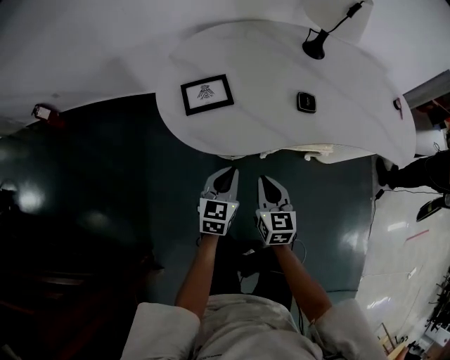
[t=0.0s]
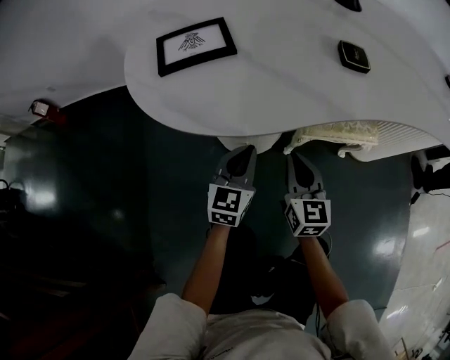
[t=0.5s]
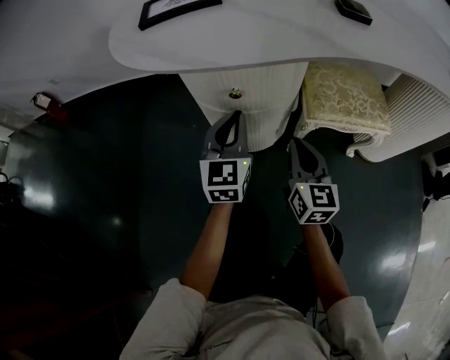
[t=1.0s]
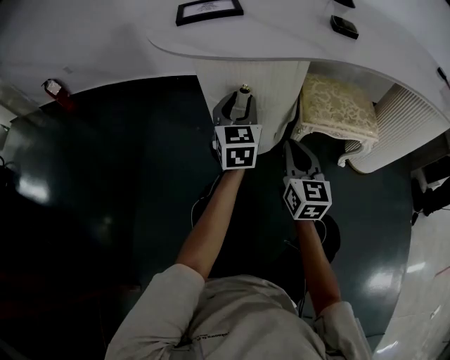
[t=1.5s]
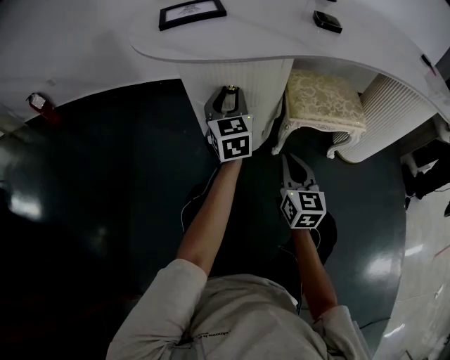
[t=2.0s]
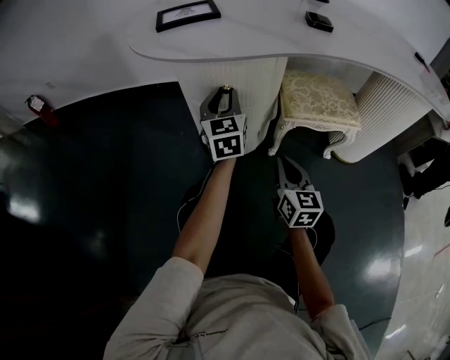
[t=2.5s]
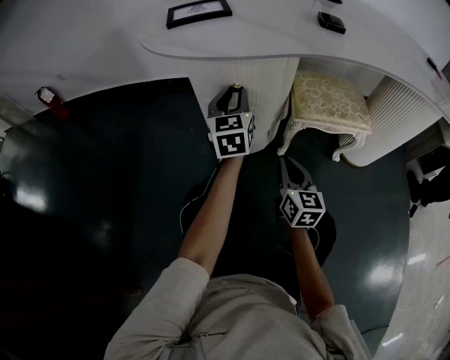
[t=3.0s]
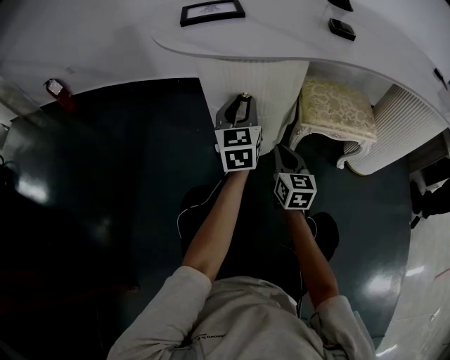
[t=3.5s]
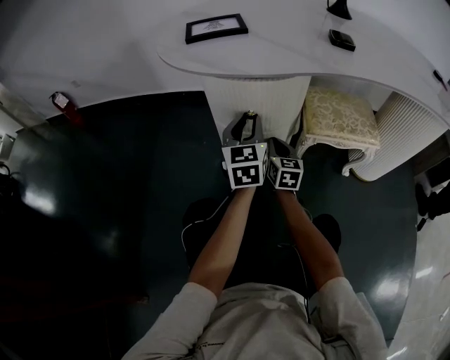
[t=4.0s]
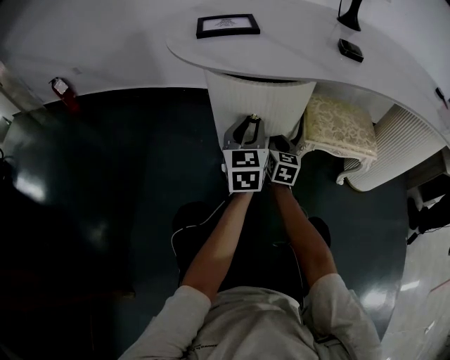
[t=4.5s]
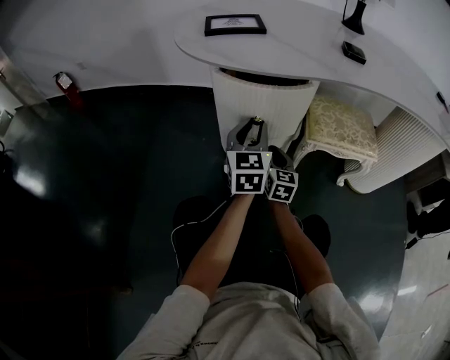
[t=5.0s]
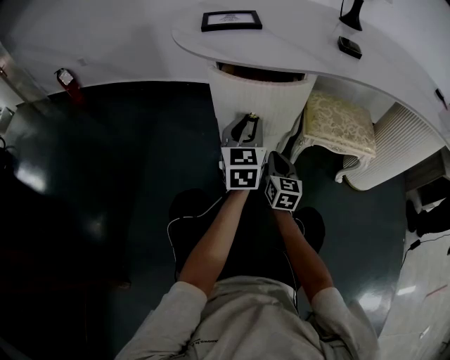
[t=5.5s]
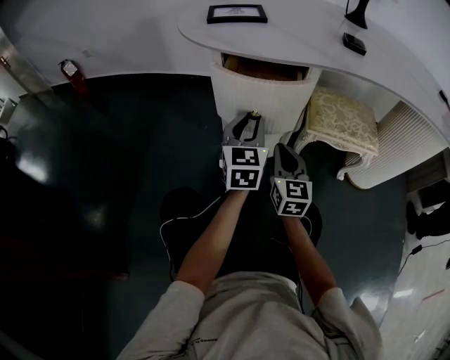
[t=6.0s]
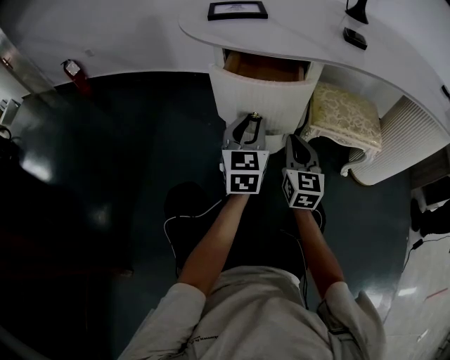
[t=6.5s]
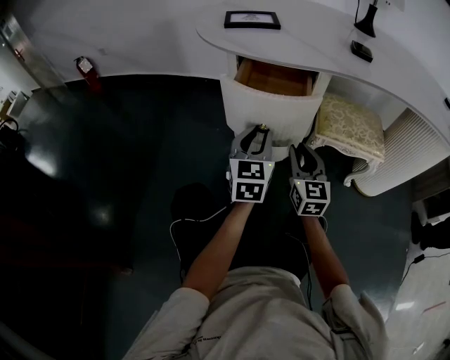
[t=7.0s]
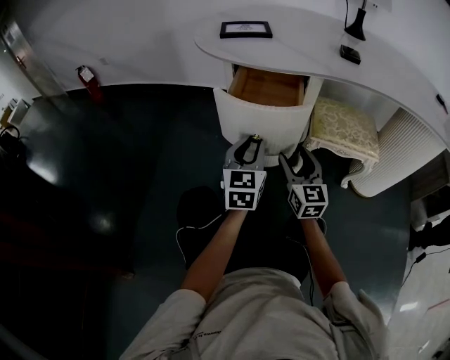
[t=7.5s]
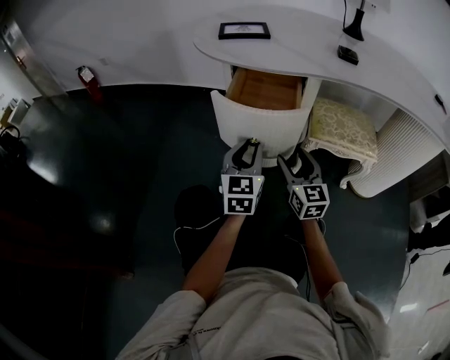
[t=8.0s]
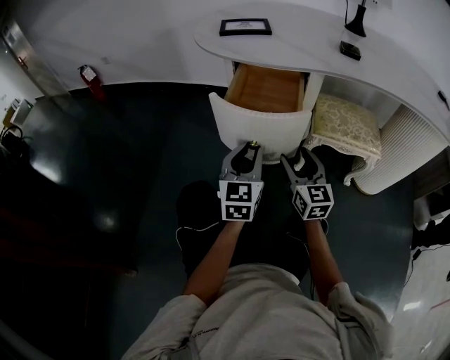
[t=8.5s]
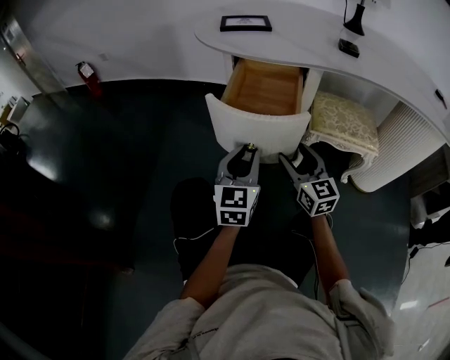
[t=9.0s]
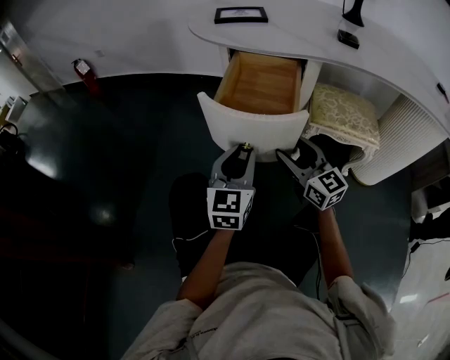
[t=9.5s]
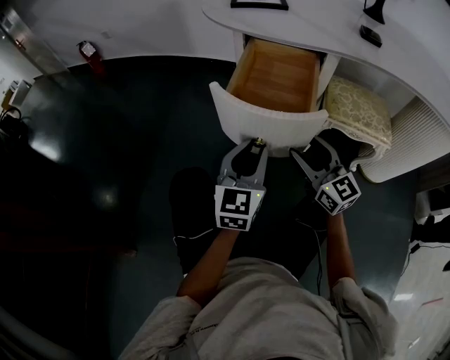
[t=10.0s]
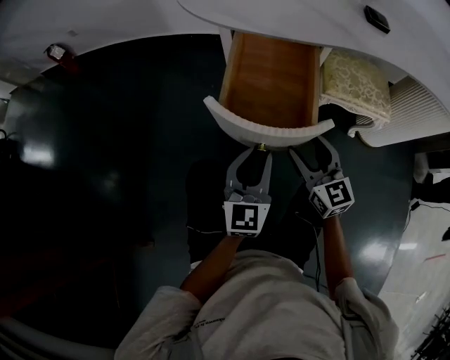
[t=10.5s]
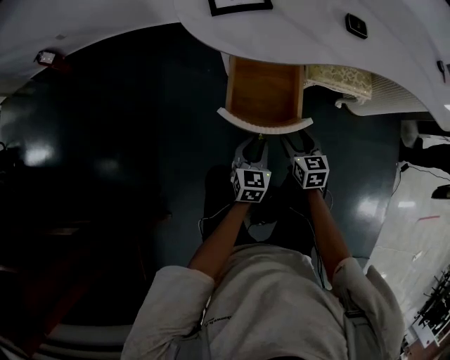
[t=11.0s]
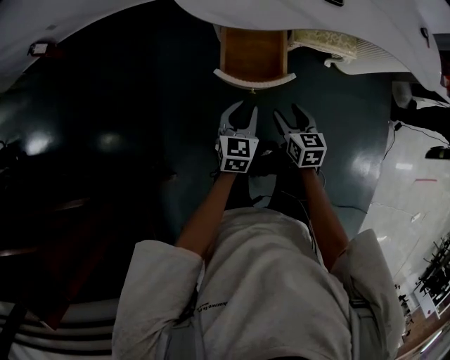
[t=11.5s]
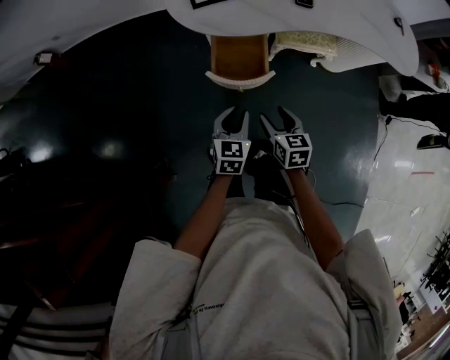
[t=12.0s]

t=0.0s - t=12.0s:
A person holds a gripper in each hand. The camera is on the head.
t=0.0s - t=2.0s: The left gripper moves downward and forward, some 20 cm, turns by roughly 30 degrees, and opens. Meanwhile the right gripper heads downward, covering about 25 cm.
t=2.0s - t=4.0s: The right gripper is displaced forward, downward and to the left by about 15 cm.
t=4.0s - t=6.0s: The right gripper heads backward and upward, covering some 15 cm, while the left gripper is displaced backward by some 5 cm.
t=6.0s - t=8.0s: The right gripper opens its fingers. Meanwhile the left gripper goes roughly 10 cm backward.
t=8.0s - t=10.0s: The right gripper moves about 5 cm, and turns by roughly 20 degrees. Meanwhile the left gripper is displaced backward by some 5 cm.
t=10.0s - t=12.0s: The left gripper goes approximately 20 cm upward, and points its fingers approximately 30 degrees further downward. The right gripper goes approximately 25 cm upward and backward, and points its fingers approximately 40 degrees further downward.

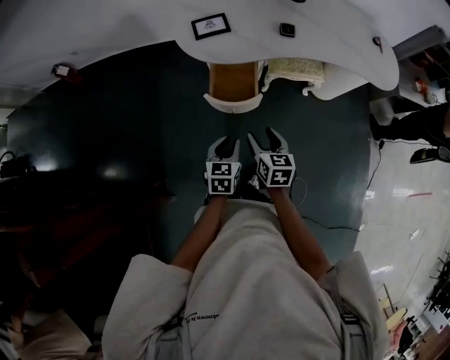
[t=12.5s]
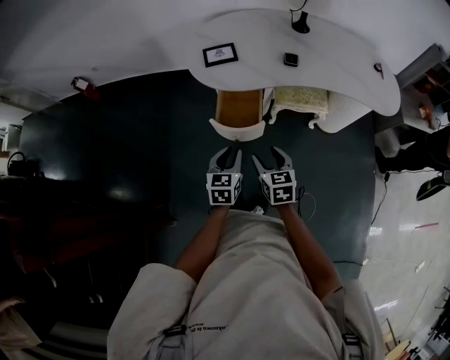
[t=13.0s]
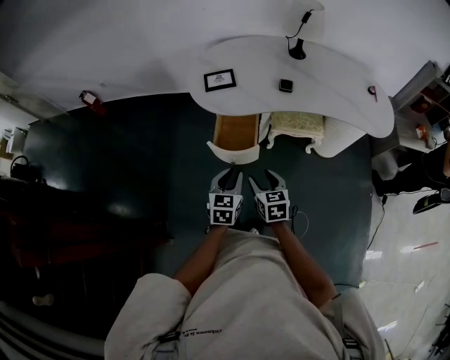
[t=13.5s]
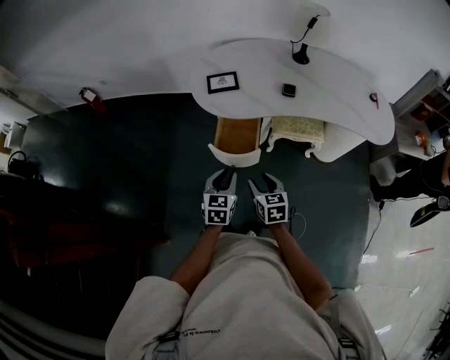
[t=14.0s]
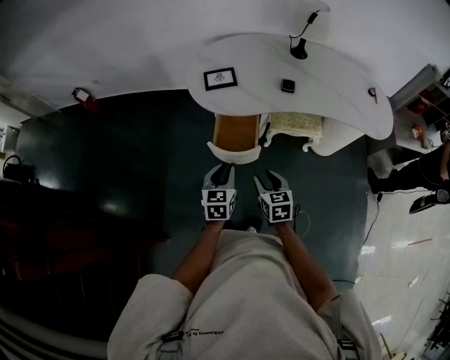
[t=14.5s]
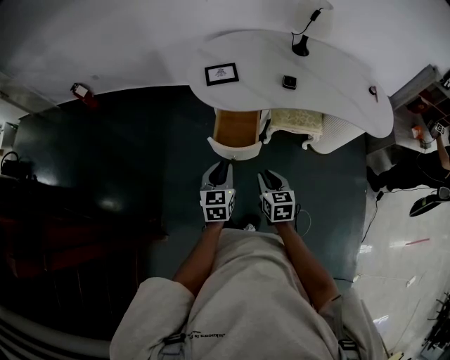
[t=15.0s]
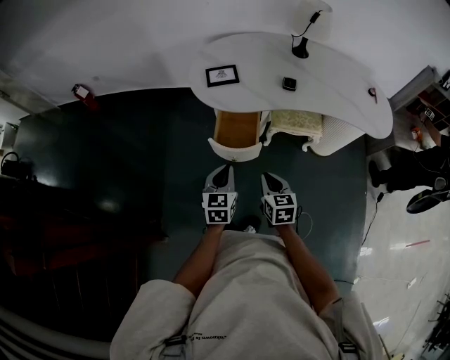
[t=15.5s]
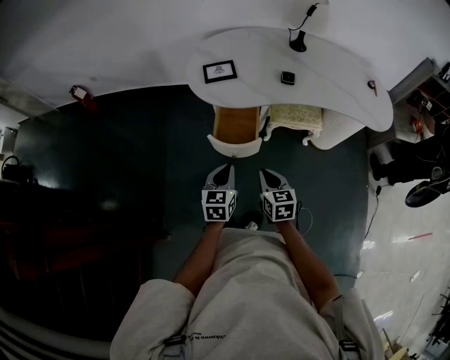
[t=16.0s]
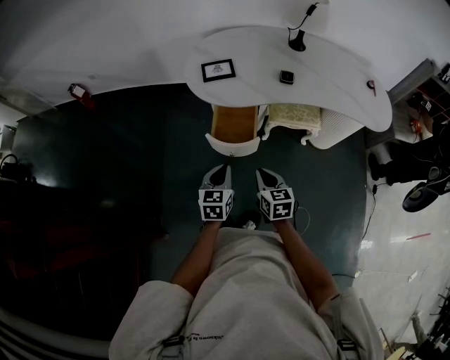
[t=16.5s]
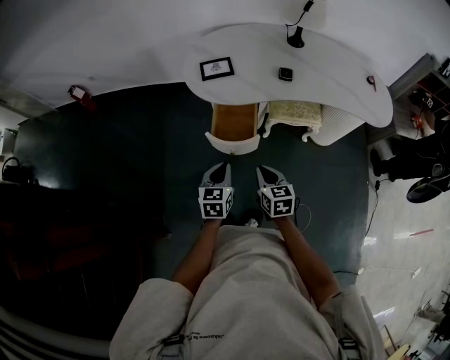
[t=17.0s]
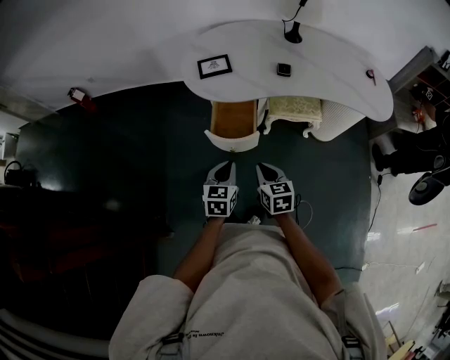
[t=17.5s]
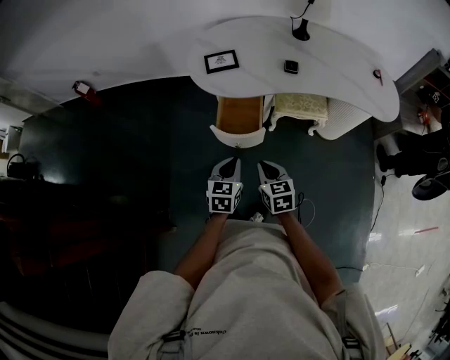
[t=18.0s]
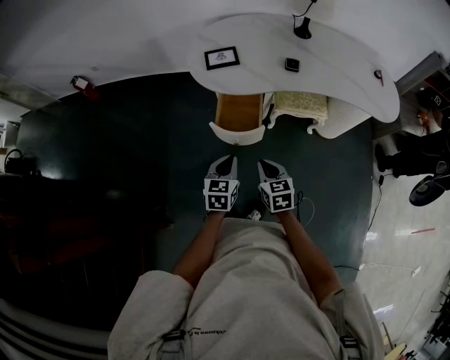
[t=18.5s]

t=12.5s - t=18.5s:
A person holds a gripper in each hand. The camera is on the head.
t=12.5s - t=14.5s: The left gripper changes place by roughly 5 cm.
t=14.5s - t=16.5s: The right gripper closes up, while the left gripper closes.
t=16.5s - t=18.5s: The grippers stay close to where they were, moving slightly.

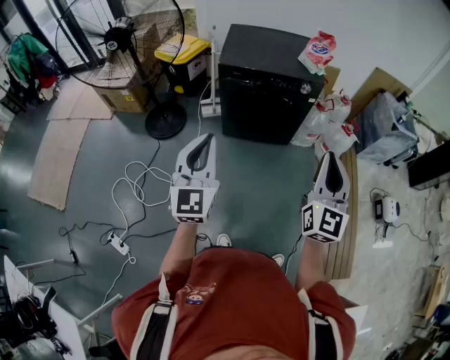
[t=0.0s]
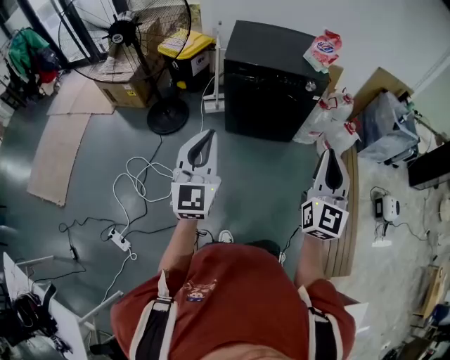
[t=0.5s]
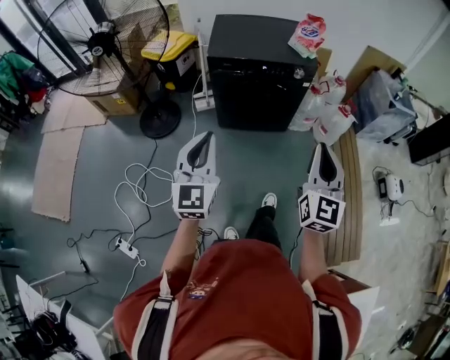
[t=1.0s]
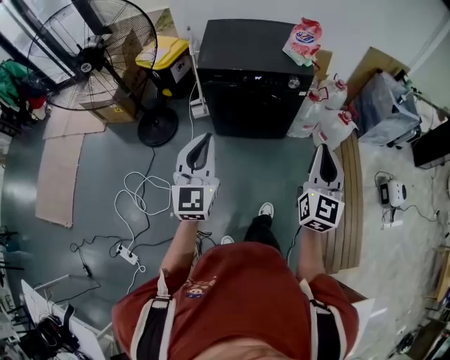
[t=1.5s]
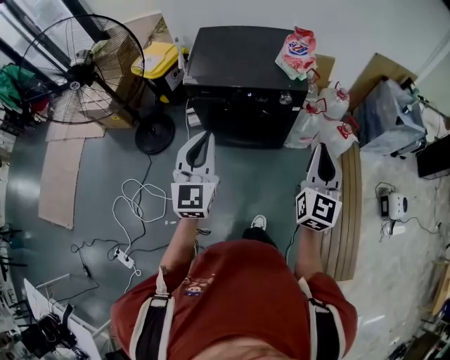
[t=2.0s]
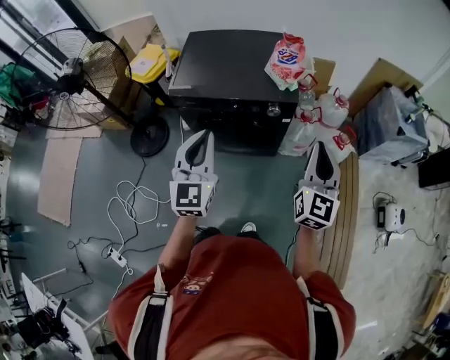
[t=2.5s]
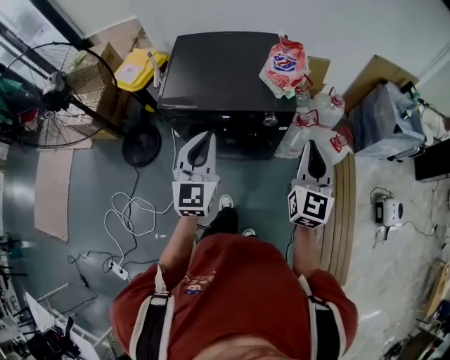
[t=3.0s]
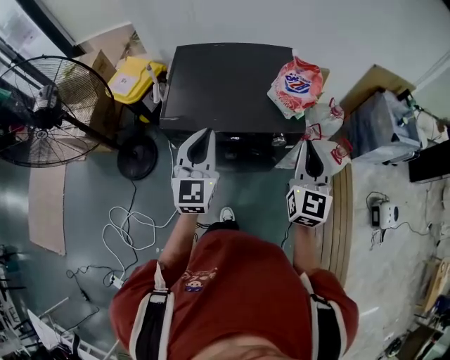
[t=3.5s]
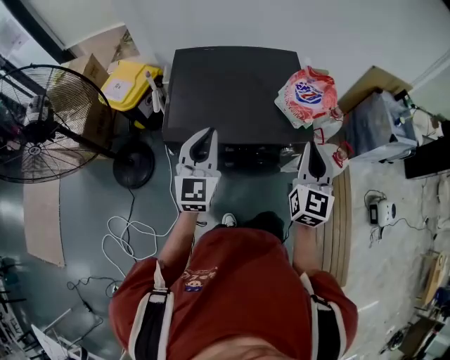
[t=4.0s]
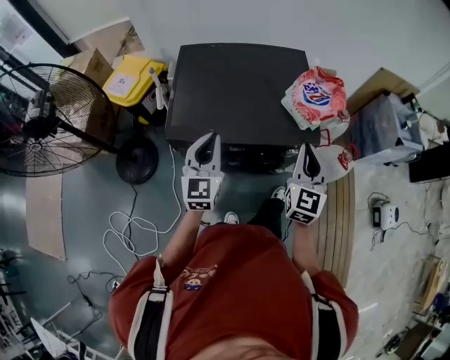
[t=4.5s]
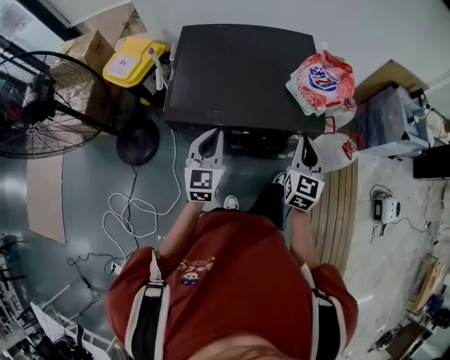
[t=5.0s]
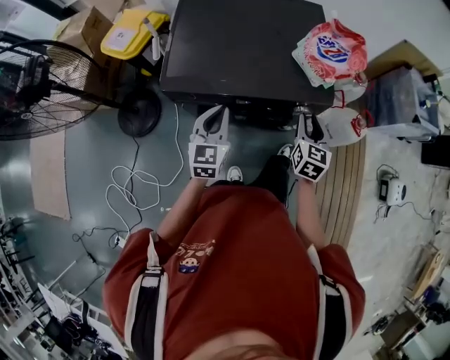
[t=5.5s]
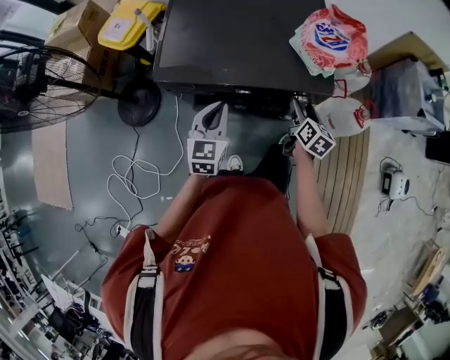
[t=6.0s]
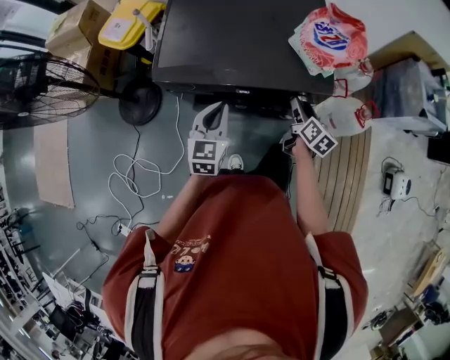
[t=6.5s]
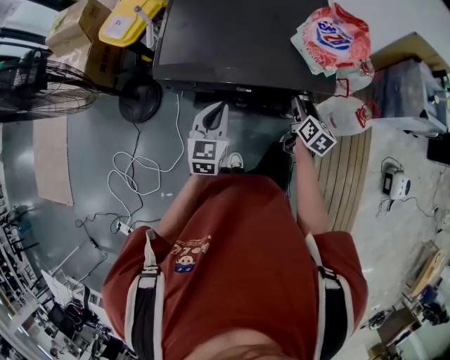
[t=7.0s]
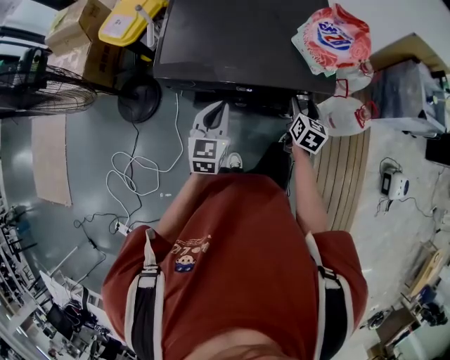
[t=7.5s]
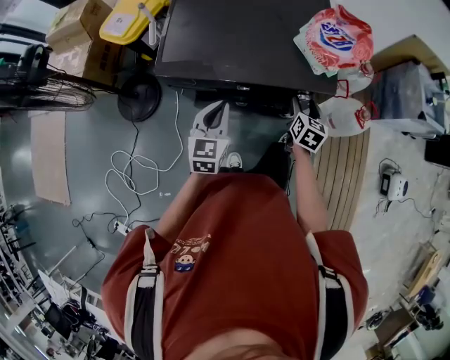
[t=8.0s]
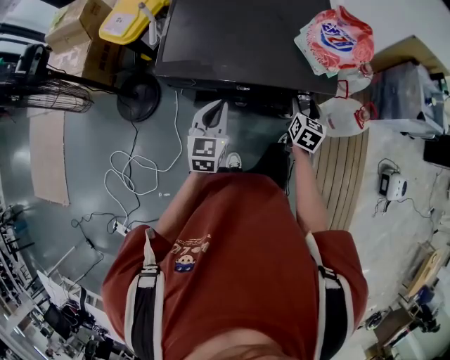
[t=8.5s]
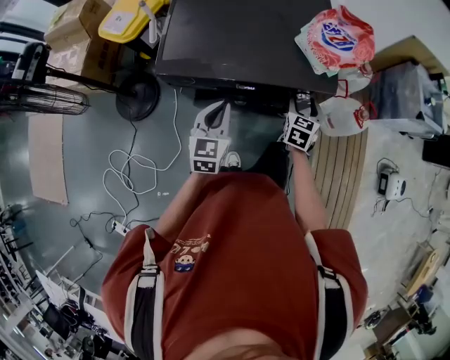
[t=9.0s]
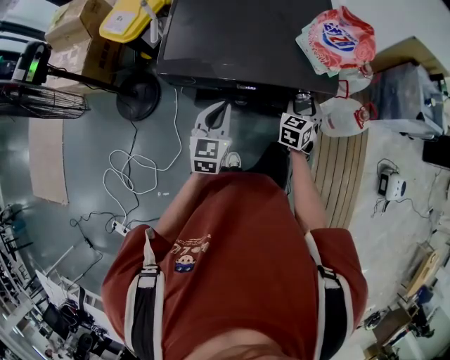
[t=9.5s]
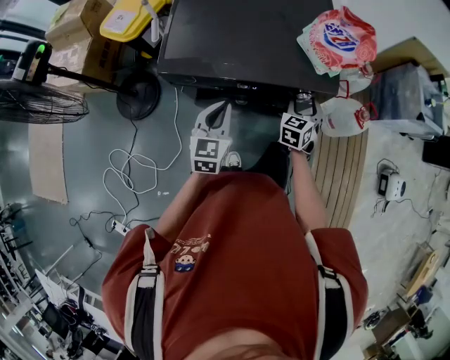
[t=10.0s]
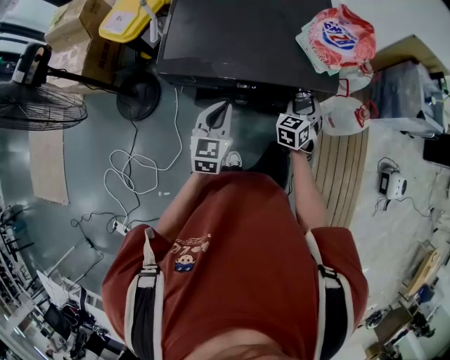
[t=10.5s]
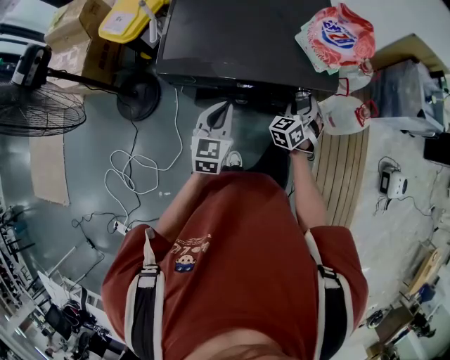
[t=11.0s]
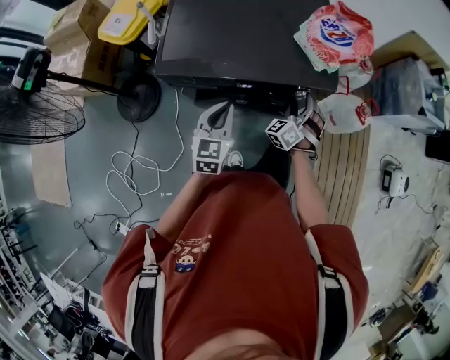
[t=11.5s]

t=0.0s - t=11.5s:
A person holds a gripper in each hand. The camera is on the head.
t=0.0s - t=2.0s: Both grippers travel together forward and to the right, roughly 30 cm.
t=2.0s - t=4.0s: Both grippers travel together forward, some 35 cm.
t=4.0s - t=6.0s: The right gripper travels downward by approximately 30 cm, swivels some 50 degrees, and opens up. Meanwhile the left gripper moves downward, roughly 20 cm, and swivels approximately 20 degrees.
t=6.0s - t=7.5s: The grippers stay close to where they were, moving slightly.
t=7.5s - t=9.5s: The right gripper turns by roughly 30 degrees.
t=9.5s - t=11.5s: The right gripper swivels approximately 40 degrees.
